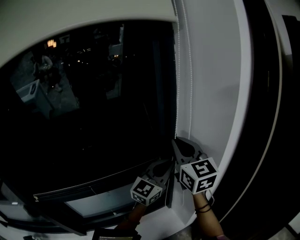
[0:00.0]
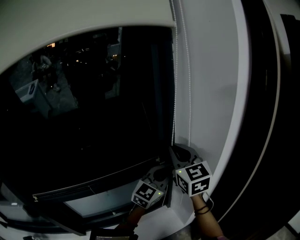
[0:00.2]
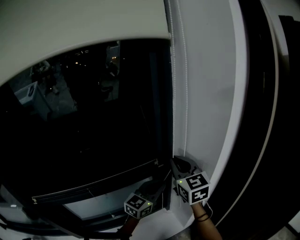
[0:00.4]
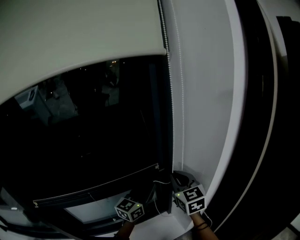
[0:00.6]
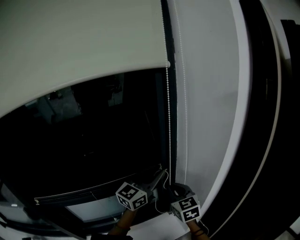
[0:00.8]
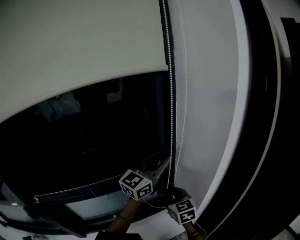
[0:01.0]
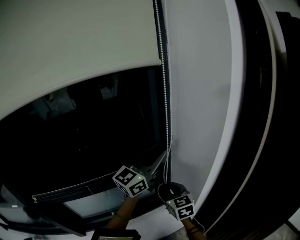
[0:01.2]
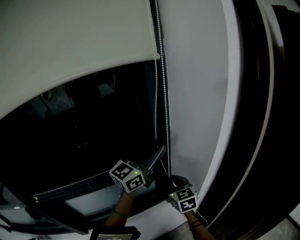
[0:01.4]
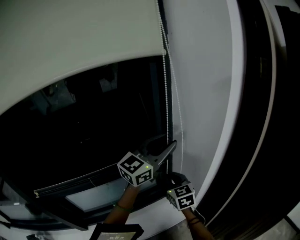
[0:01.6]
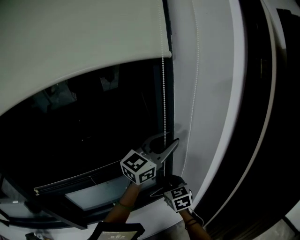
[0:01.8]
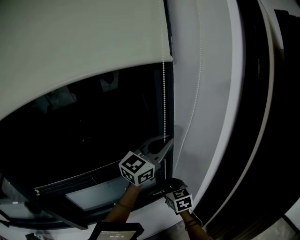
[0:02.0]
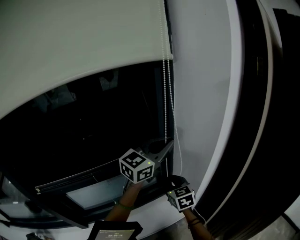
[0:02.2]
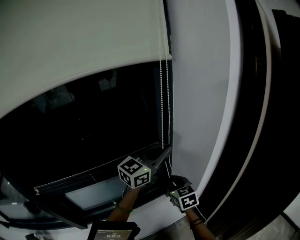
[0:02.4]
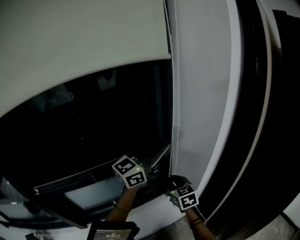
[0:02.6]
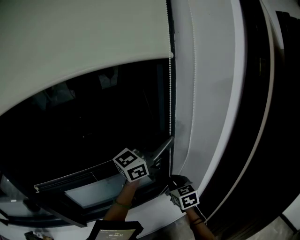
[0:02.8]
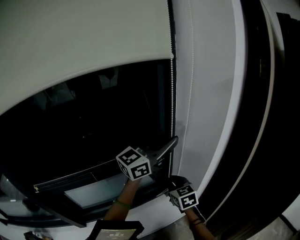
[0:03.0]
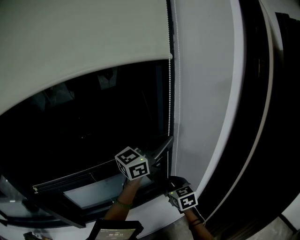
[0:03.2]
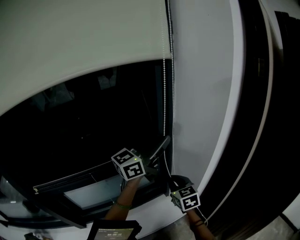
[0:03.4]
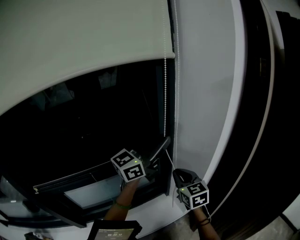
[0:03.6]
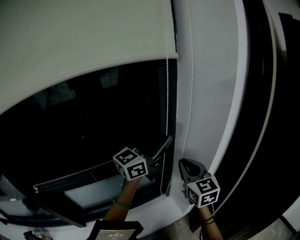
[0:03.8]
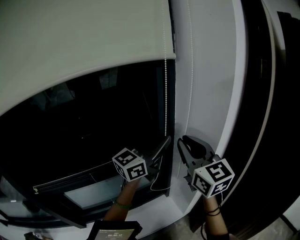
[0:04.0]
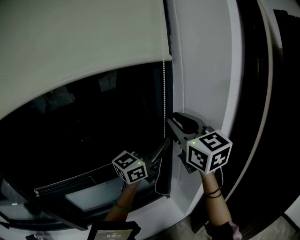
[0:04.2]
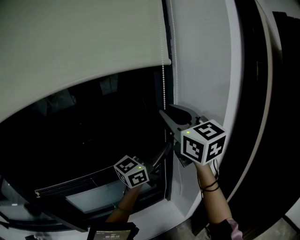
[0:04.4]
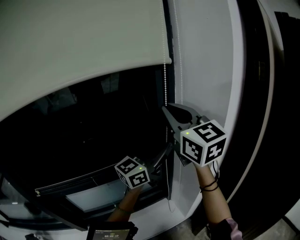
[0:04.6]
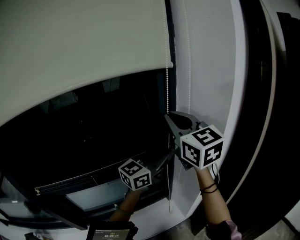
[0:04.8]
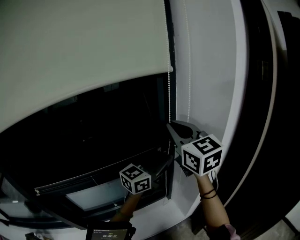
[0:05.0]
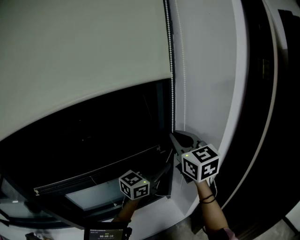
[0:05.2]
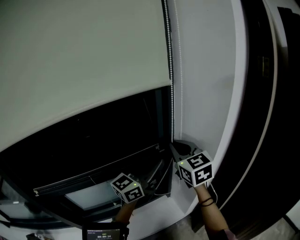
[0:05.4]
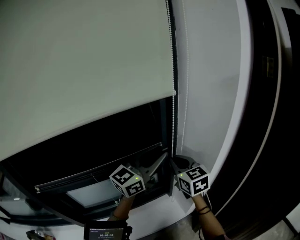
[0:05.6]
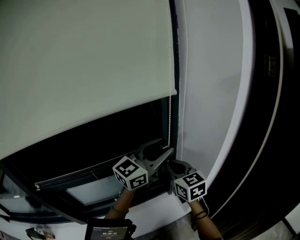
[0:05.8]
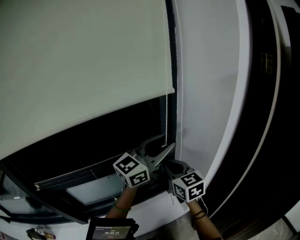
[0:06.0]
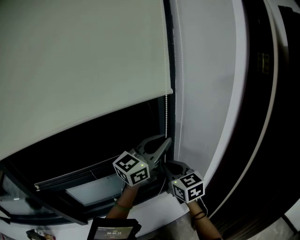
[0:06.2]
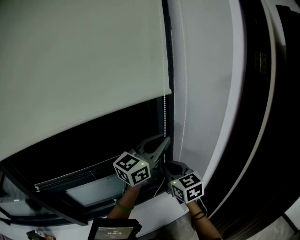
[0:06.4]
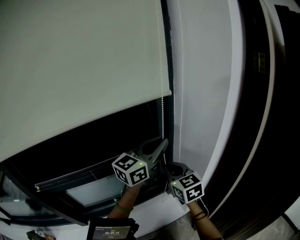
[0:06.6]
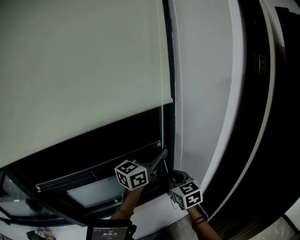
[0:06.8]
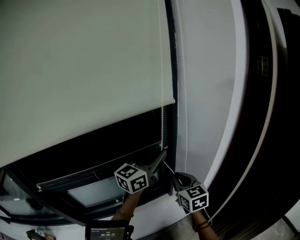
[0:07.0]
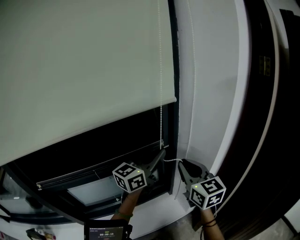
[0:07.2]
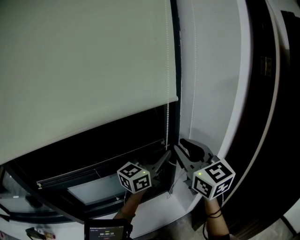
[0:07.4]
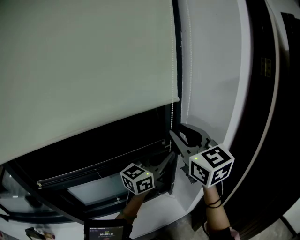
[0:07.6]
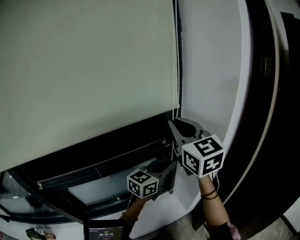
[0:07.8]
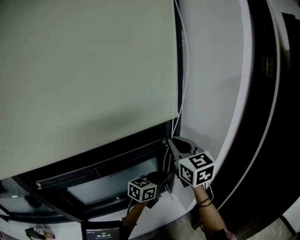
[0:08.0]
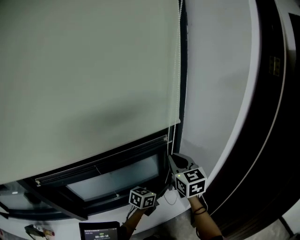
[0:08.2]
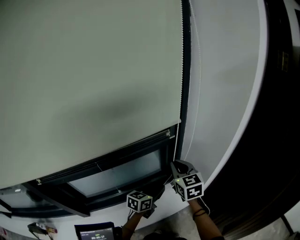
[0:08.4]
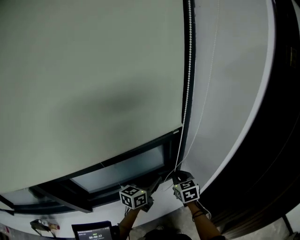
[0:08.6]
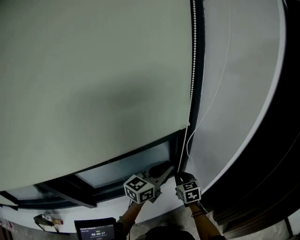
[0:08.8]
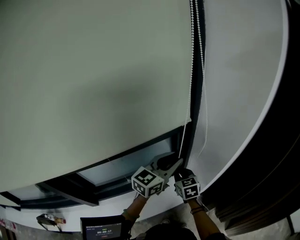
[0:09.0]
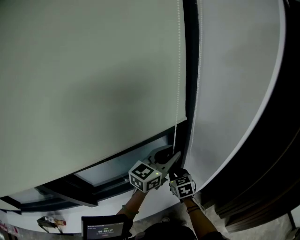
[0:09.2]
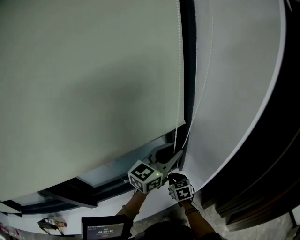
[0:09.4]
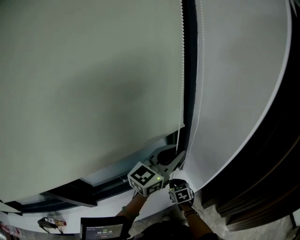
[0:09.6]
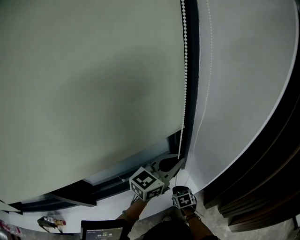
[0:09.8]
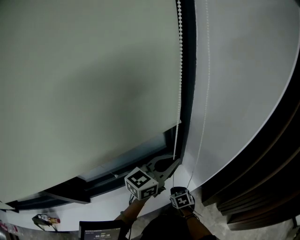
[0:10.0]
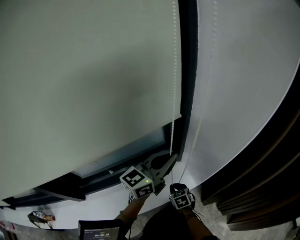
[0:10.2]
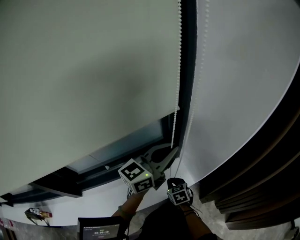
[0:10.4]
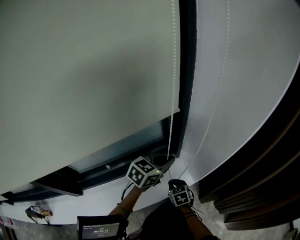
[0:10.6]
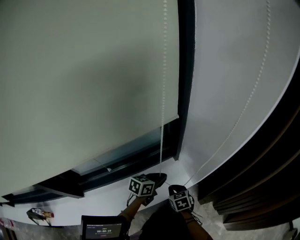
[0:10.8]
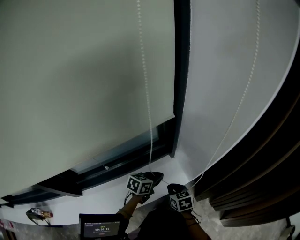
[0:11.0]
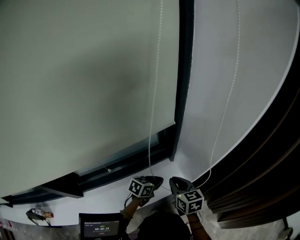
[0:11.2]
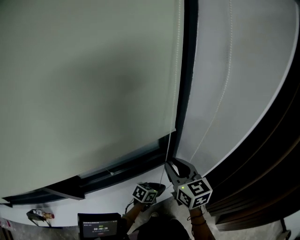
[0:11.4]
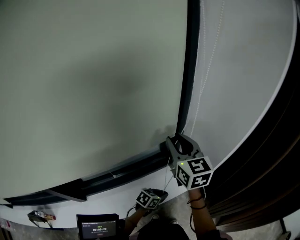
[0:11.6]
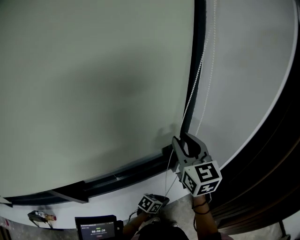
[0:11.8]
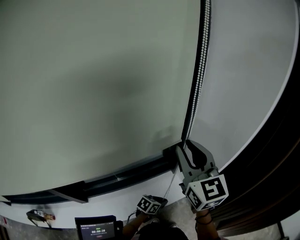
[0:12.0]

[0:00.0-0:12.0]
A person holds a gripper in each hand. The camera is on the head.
0:00.0 to 0:01.6: The left gripper travels upward by approximately 5 cm, and opens up, while the right gripper shifts approximately 25 cm downward, and swivels some 20 degrees.
0:01.6 to 0:03.0: The right gripper changes place by about 5 cm; the left gripper closes, then opens again.
0:03.0 to 0:04.4: The right gripper heads upward, covering approximately 35 cm, and tips its fingers upward by approximately 30 degrees, while the left gripper closes.
0:04.4 to 0:06.0: The left gripper reaches roughly 10 cm downward, then returns, and opens up. Meanwhile the right gripper travels downward by about 25 cm, and swivels roughly 20 degrees.
0:06.0 to 0:07.6: The left gripper travels downward by some 5 cm, and closes up, while the right gripper shifts about 20 cm upward, and opens.
0:07.6 to 0:09.0: The left gripper heads downward, covering roughly 15 cm. The right gripper moves downward, approximately 40 cm, angles its fingers downward, by roughly 30 degrees, and closes.
0:09.0 to 0:10.4: The right gripper heads downward, covering some 35 cm. Meanwhile the left gripper heads downward, covering approximately 15 cm, and closes up.
0:10.4 to 0:12.0: The left gripper travels downward and backward by some 25 cm, and angles its fingers downward, by approximately 50 degrees, while the right gripper moves upward, some 60 cm, angles its fingers upward, by some 50 degrees, and opens its fingers.

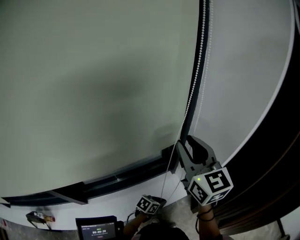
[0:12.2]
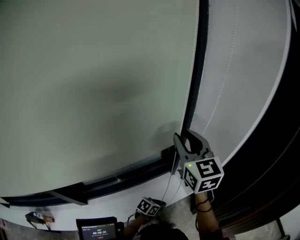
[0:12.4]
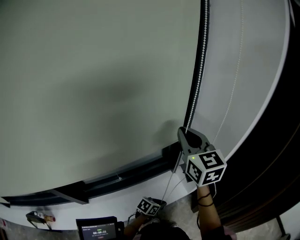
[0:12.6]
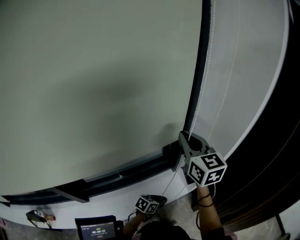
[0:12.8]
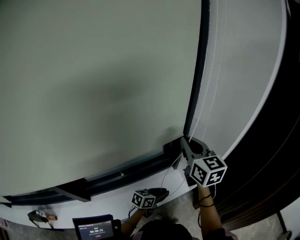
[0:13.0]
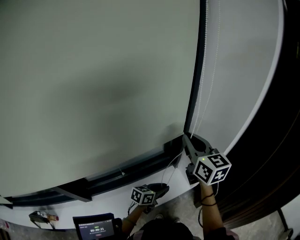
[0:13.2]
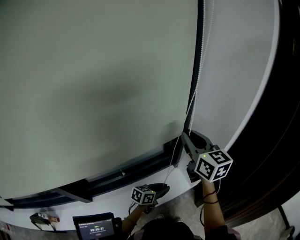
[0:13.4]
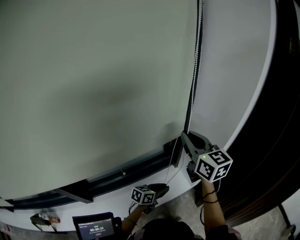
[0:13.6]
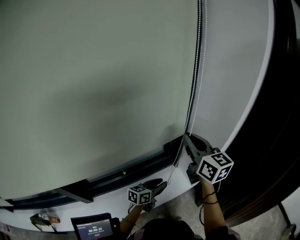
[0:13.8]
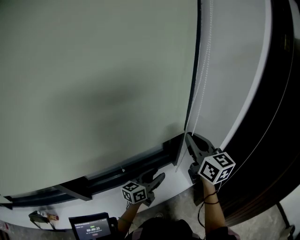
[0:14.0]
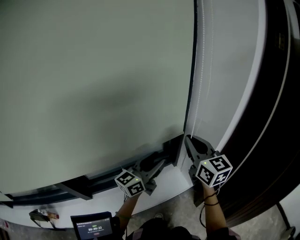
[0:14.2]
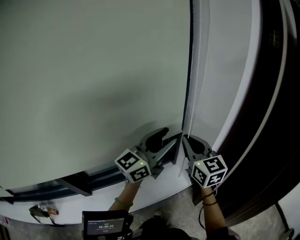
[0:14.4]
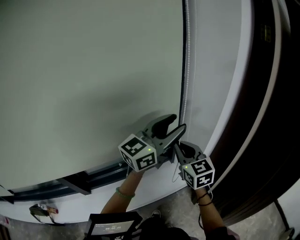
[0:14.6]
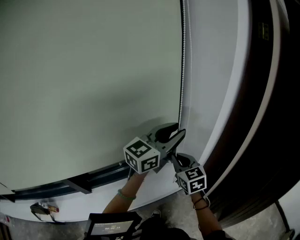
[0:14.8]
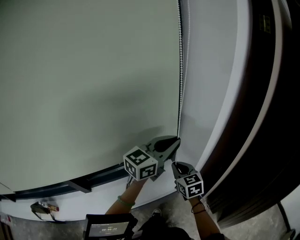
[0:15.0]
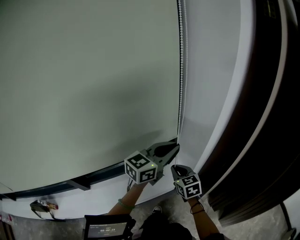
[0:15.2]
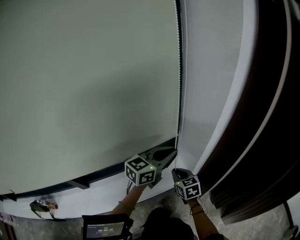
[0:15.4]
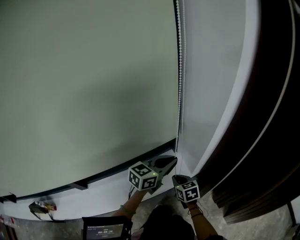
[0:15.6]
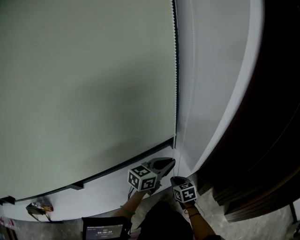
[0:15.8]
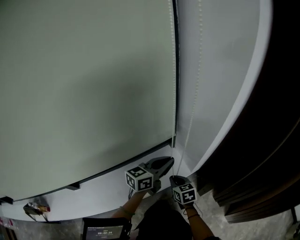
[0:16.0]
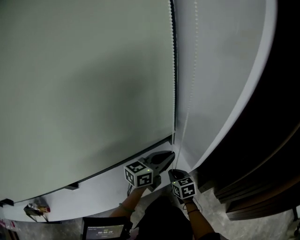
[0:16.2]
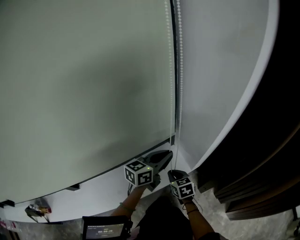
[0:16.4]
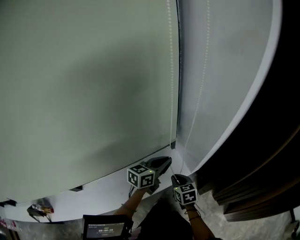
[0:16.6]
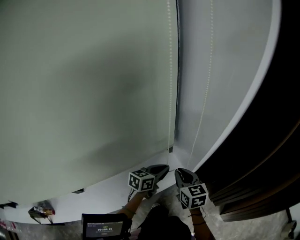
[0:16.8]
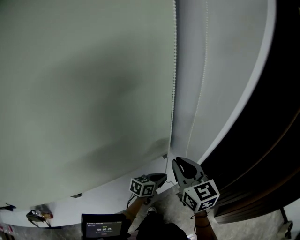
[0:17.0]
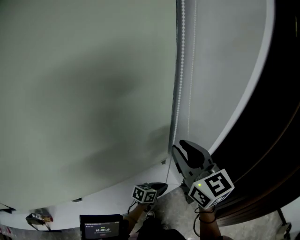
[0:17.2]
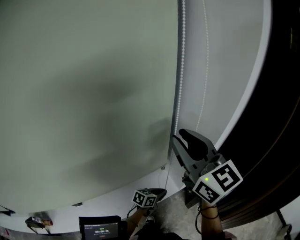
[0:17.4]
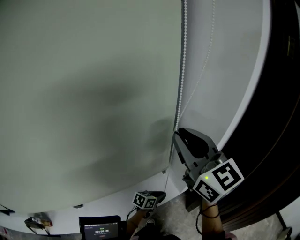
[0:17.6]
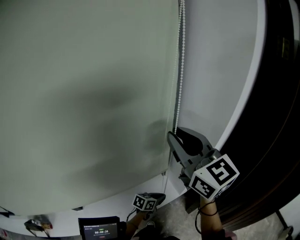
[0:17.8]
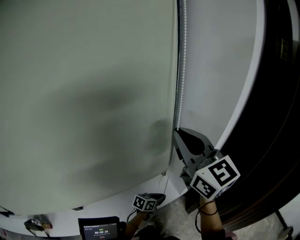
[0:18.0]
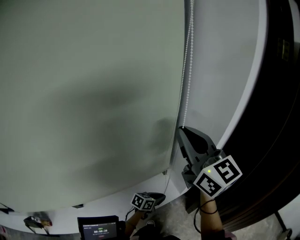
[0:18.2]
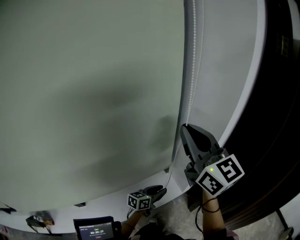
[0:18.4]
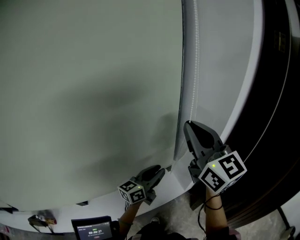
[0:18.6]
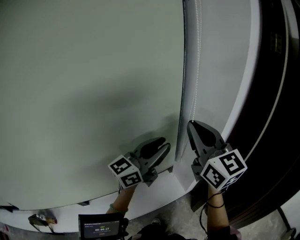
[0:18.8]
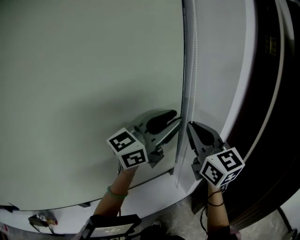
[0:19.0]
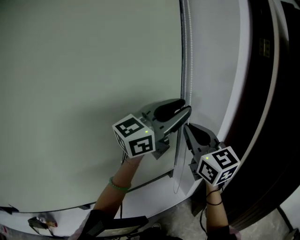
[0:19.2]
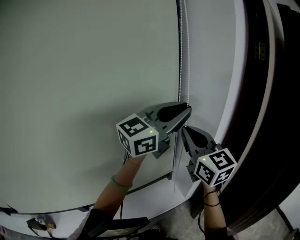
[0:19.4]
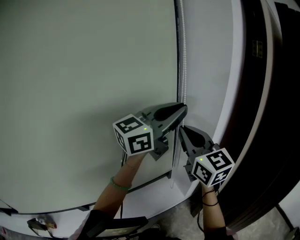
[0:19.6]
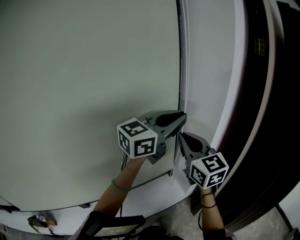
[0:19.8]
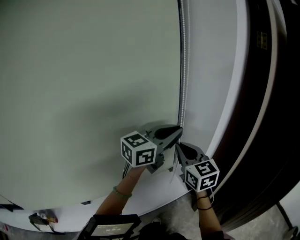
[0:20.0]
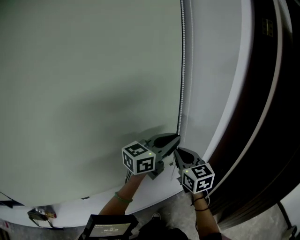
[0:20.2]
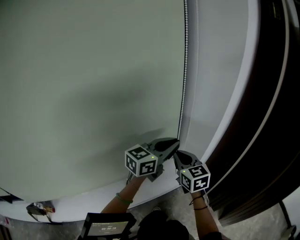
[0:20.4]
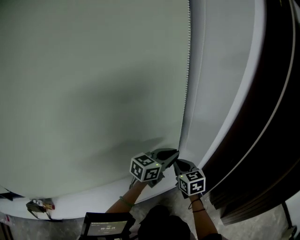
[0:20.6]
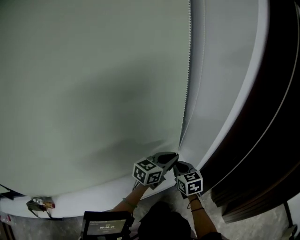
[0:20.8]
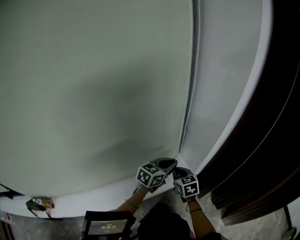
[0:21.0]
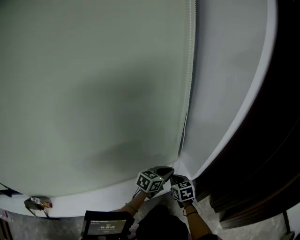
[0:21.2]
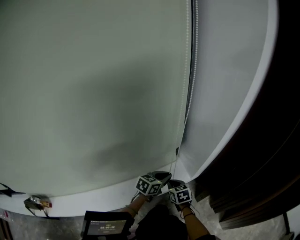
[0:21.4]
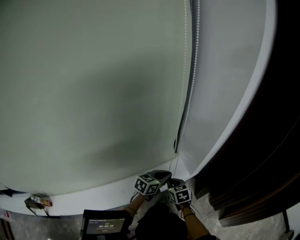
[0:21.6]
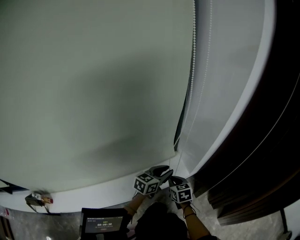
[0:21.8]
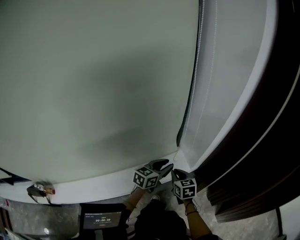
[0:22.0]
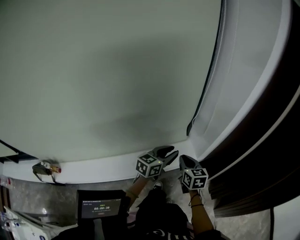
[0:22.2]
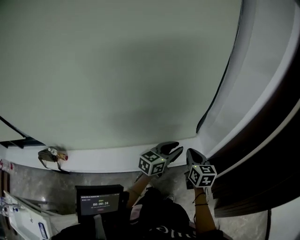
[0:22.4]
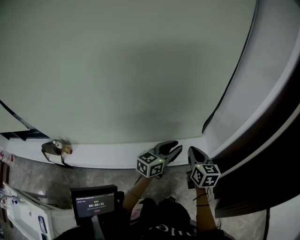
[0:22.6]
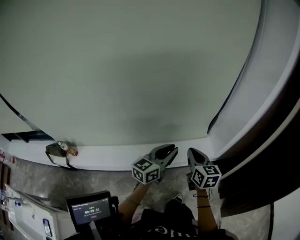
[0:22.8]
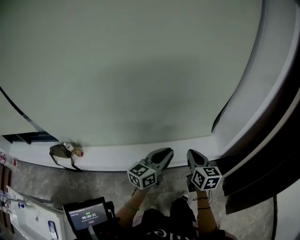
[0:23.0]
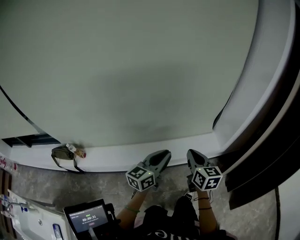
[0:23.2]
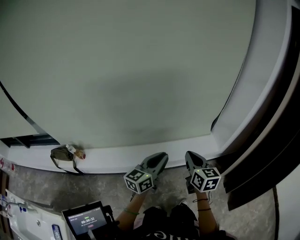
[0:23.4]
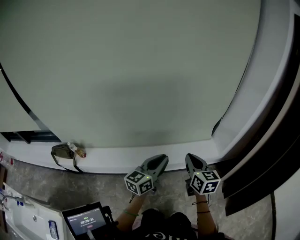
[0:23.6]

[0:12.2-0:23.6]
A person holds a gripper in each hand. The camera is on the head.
0:12.2 to 0:13.6: The right gripper moves downward, about 5 cm, and closes its fingers, while the left gripper goes about 5 cm upward.
0:13.6 to 0:15.0: The right gripper heads downward and backward, covering roughly 25 cm, and rotates roughly 20 degrees; the left gripper shifts about 30 cm upward, swivels some 40 degrees, and opens, then closes again.
0:15.0 to 0:16.4: Both grippers travel together downward, roughly 35 cm. The left gripper changes its angle by roughly 20 degrees.
0:16.4 to 0:17.8: The right gripper travels upward by roughly 70 cm, and tilts its fingers roughly 50 degrees upward; the left gripper shifts roughly 10 cm backward, and swivels some 30 degrees.
0:17.8 to 0:19.4: The left gripper travels upward by approximately 60 cm, and tips its fingers upward by some 50 degrees.
0:19.4 to 0:20.8: Both grippers travel together downward, approximately 50 cm. The right gripper points its fingers about 30 degrees further downward, while the left gripper swivels some 40 degrees.
0:20.8 to 0:22.2: The right gripper heads backward, covering some 10 cm, and travels downward and back again, roughly 15 cm each way. Meanwhile the left gripper shifts approximately 10 cm backward and to the left, moves about 15 cm downward and comes back, and opens its fingers.
0:22.2 to 0:23.6: The left gripper moves backward and to the left, approximately 40 cm, and turns by about 30 degrees. Meanwhile the right gripper is displaced backward, to the left and upward by some 40 cm.
